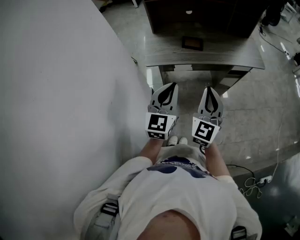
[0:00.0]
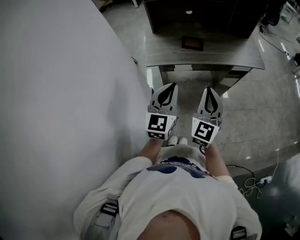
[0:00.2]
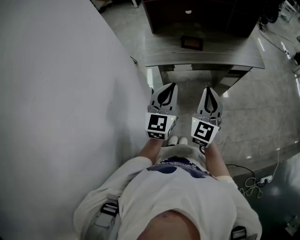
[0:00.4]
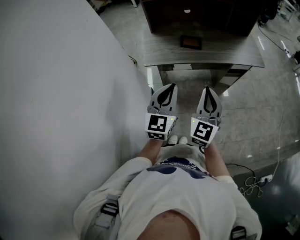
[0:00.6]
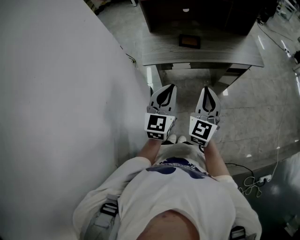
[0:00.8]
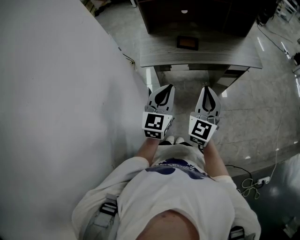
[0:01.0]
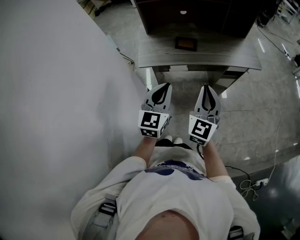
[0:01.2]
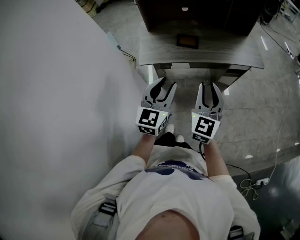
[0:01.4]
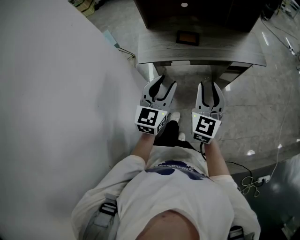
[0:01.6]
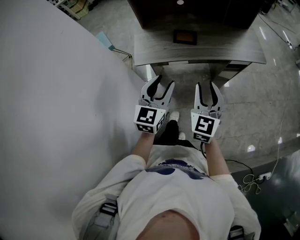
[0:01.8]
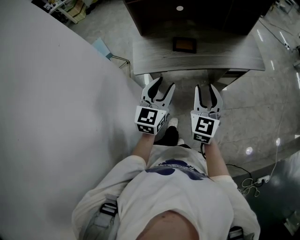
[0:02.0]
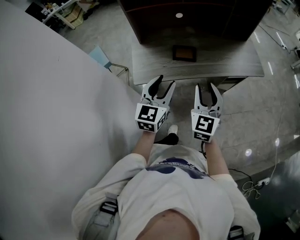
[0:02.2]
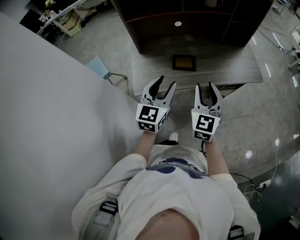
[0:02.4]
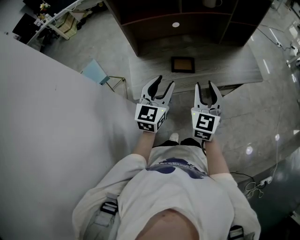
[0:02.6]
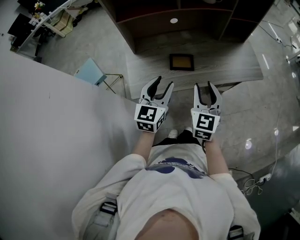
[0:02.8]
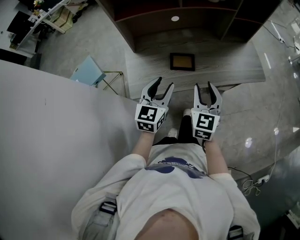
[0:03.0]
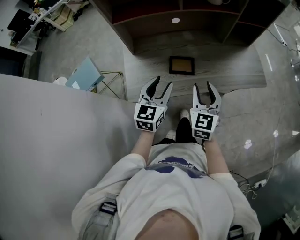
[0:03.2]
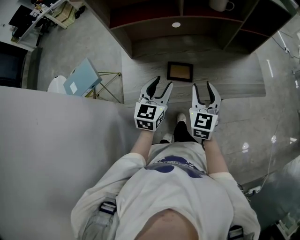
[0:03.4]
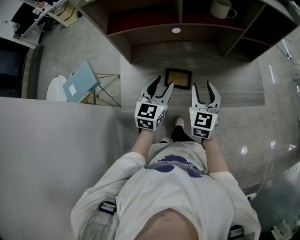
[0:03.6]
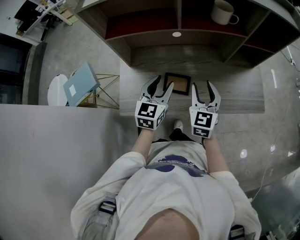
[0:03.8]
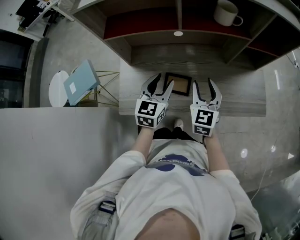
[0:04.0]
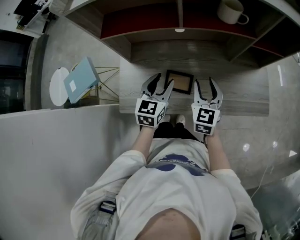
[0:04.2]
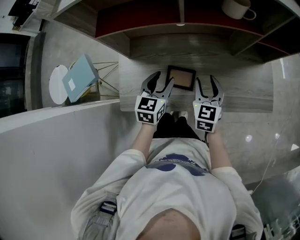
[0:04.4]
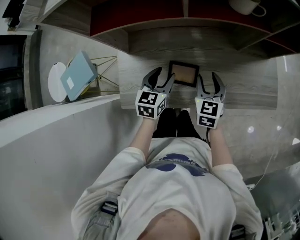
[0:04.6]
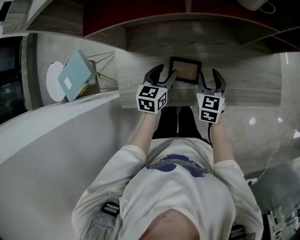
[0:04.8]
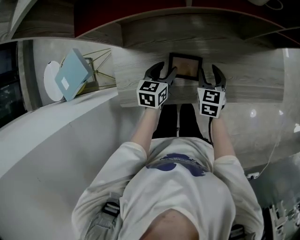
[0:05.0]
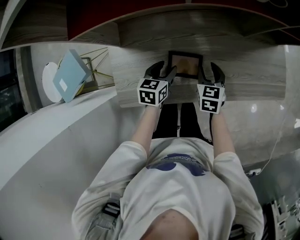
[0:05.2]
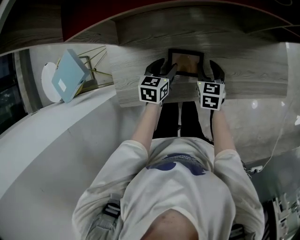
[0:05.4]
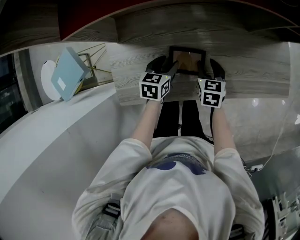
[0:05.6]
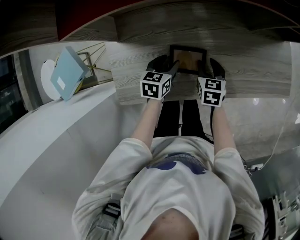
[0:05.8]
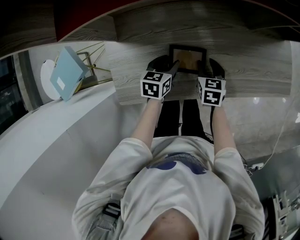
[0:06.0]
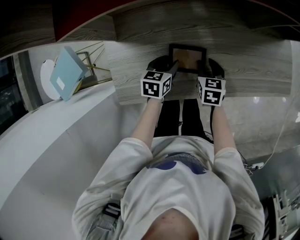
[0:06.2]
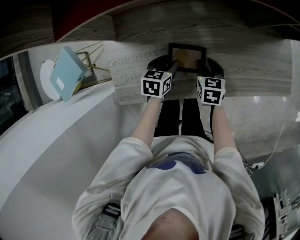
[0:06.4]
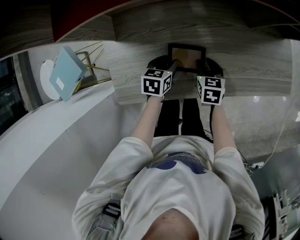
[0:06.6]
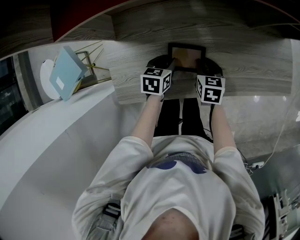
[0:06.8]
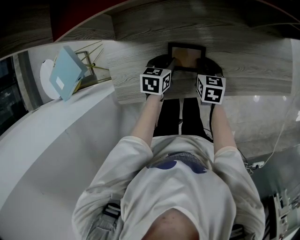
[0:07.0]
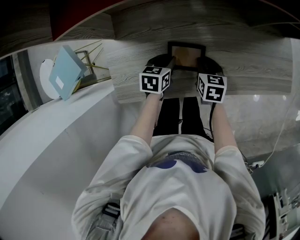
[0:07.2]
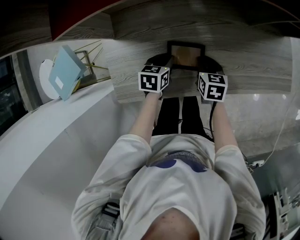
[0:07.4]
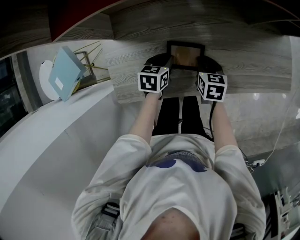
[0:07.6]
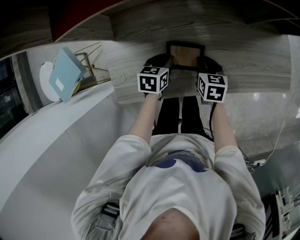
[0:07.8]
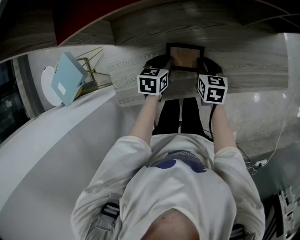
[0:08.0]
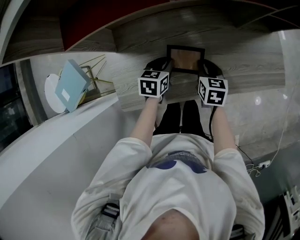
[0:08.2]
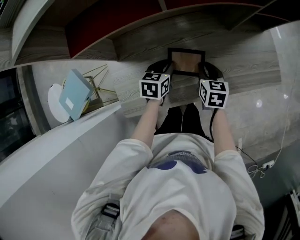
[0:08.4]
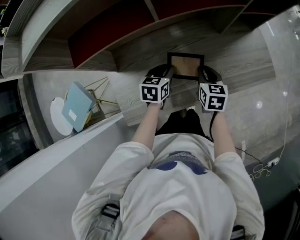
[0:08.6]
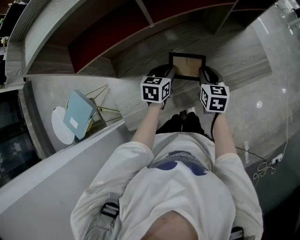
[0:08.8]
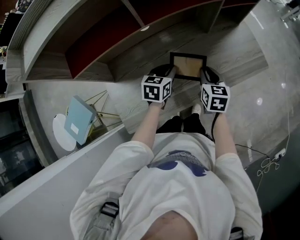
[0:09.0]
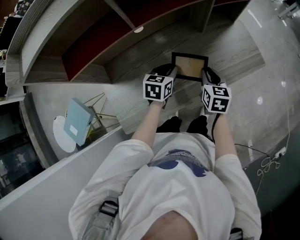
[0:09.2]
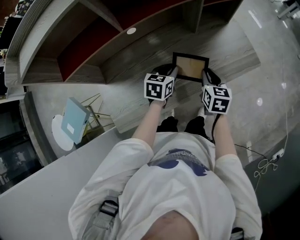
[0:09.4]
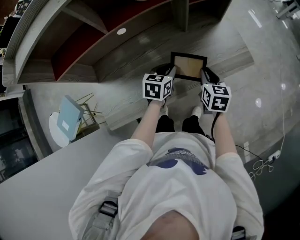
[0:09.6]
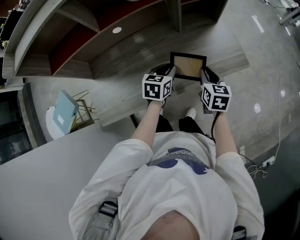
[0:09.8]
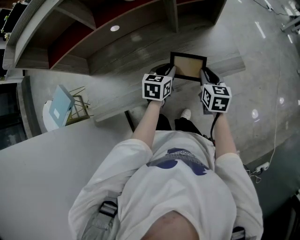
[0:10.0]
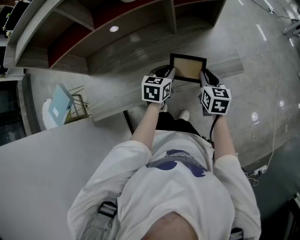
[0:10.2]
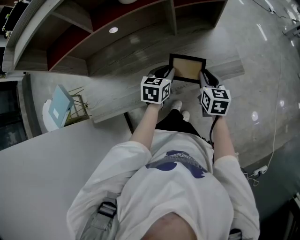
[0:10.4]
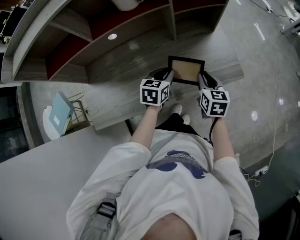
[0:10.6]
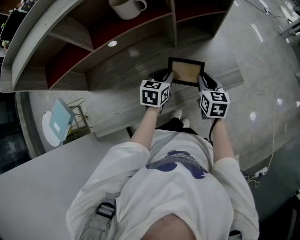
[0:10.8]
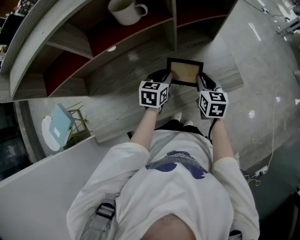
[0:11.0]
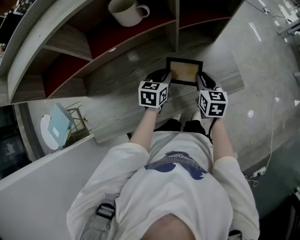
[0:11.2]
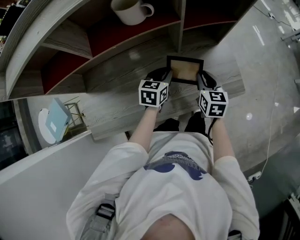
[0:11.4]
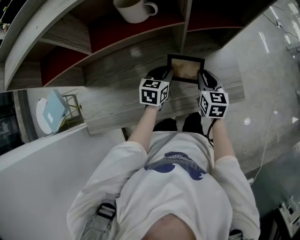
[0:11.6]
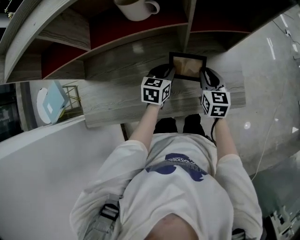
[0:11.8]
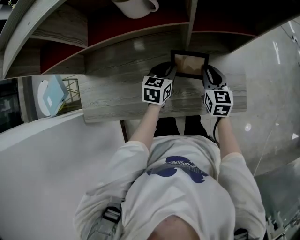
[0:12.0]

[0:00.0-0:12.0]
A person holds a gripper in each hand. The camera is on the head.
0:00.0 to 0:01.6: The left gripper moves about 5 cm, and opens. Meanwhile the right gripper is displaced forward by about 5 cm, and opens up.
0:01.6 to 0:03.0: Both grippers travel together forward, roughly 25 cm.
0:03.0 to 0:04.4: The two grippers go some 25 cm forward and downward.
0:04.4 to 0:06.0: Both grippers move downward, approximately 20 cm. The right gripper changes its angle by approximately 30 degrees; the left gripper rotates about 30 degrees.
0:06.0 to 0:07.6: The left gripper closes up. The right gripper closes.
0:07.6 to 0:09.0: Both grippers travel together upward and to the right, some 15 cm. The right gripper rotates about 20 degrees. Meanwhile the left gripper changes its angle by roughly 20 degrees.
0:09.0 to 0:10.4: The grippers both shift to the right by roughly 20 cm.
0:10.4 to 0:12.0: The grippers both shift forward by approximately 15 cm.

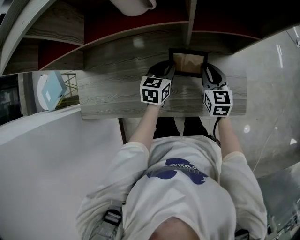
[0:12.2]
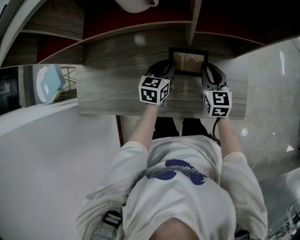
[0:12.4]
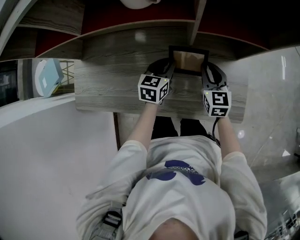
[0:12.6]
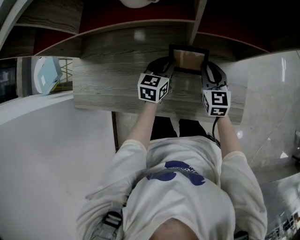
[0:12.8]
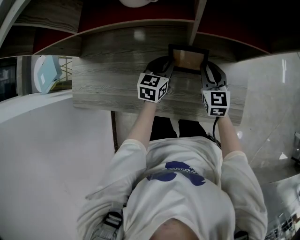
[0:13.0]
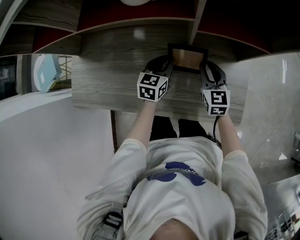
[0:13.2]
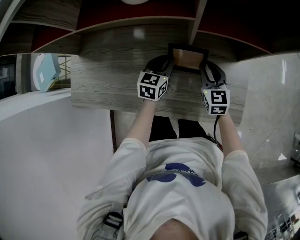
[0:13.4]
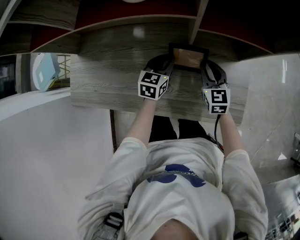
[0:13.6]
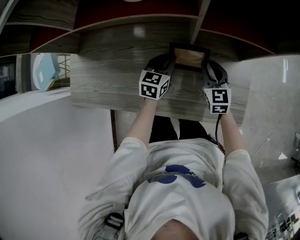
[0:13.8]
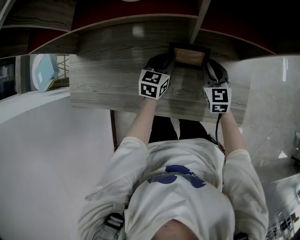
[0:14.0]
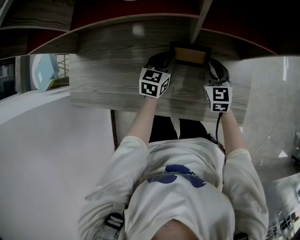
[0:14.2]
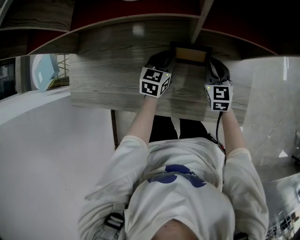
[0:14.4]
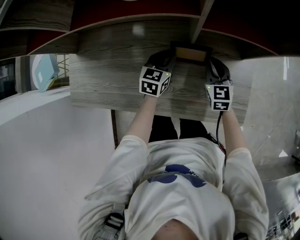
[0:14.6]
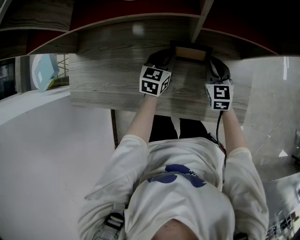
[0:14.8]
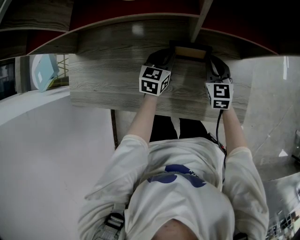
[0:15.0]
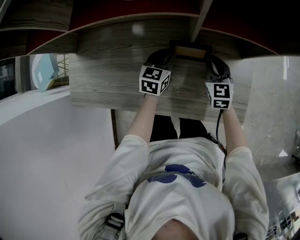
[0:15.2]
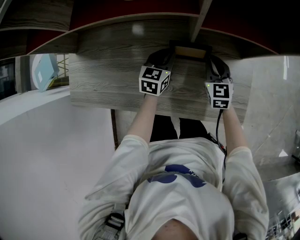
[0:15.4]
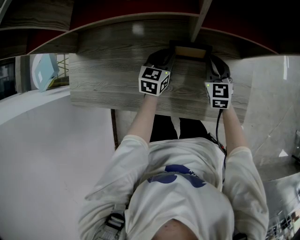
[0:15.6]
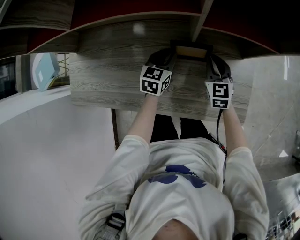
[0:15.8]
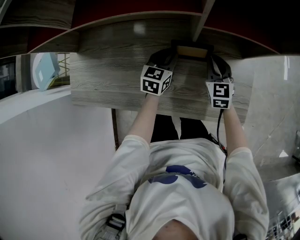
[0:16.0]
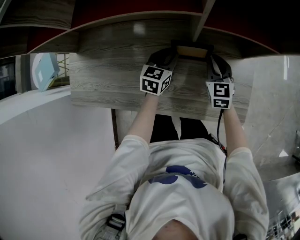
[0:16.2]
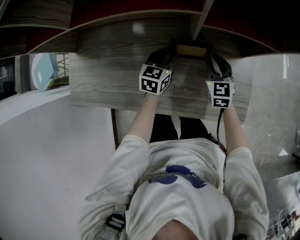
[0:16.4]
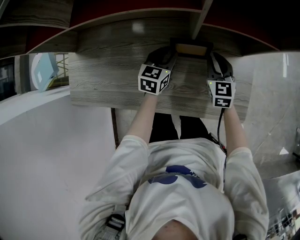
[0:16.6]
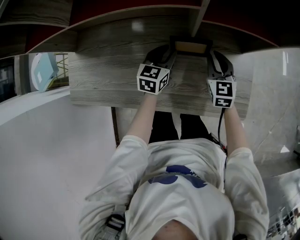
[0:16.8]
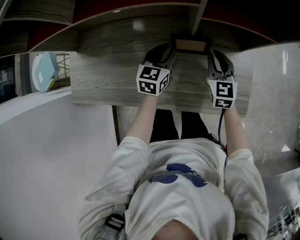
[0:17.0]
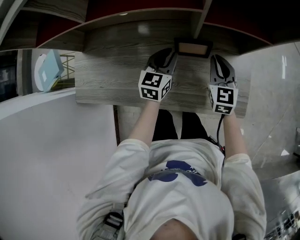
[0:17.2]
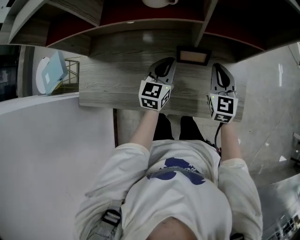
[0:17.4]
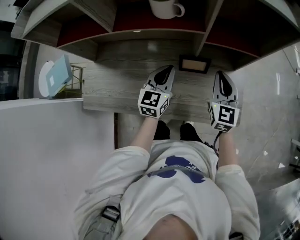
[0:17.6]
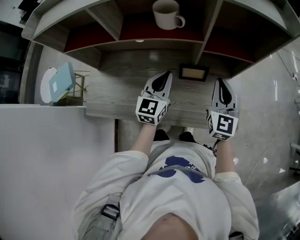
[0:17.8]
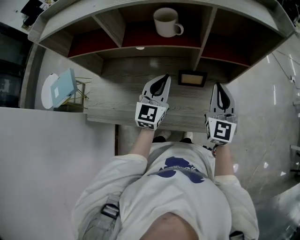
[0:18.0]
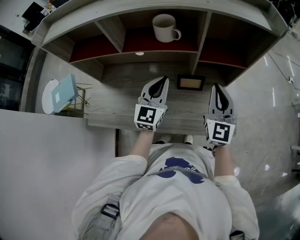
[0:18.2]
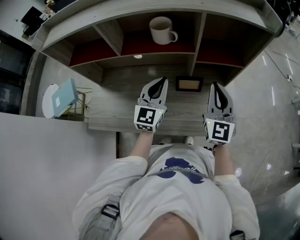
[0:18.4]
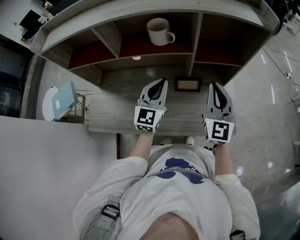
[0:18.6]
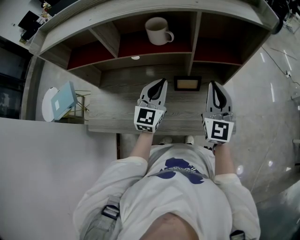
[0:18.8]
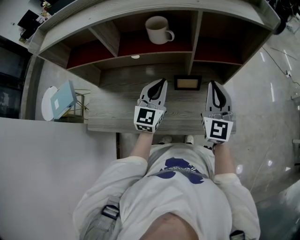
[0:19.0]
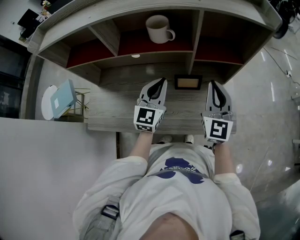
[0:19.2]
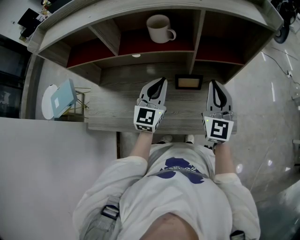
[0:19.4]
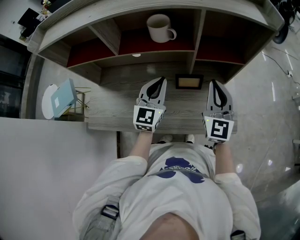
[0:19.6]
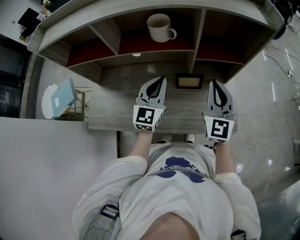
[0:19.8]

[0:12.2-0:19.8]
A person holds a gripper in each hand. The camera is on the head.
0:12.2 to 0:13.8: The right gripper shifts some 5 cm downward, while the left gripper moves roughly 5 cm.
0:13.8 to 0:16.8: The grippers stay close to where they were, moving slightly.
0:16.8 to 0:18.2: Both grippers move upward, roughly 25 cm. The right gripper changes its angle by roughly 30 degrees; the left gripper swivels some 30 degrees, and closes its fingers.
0:18.2 to 0:19.8: The grippers move only a little.

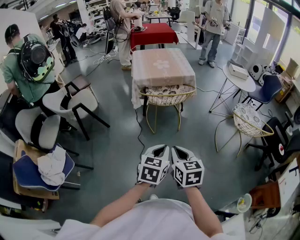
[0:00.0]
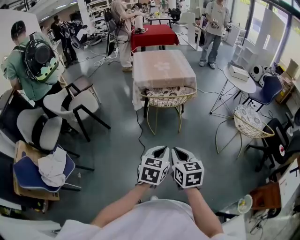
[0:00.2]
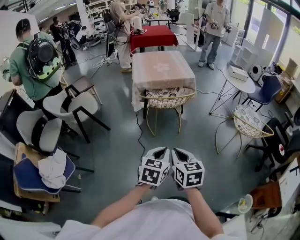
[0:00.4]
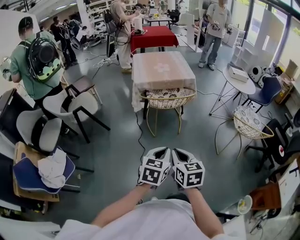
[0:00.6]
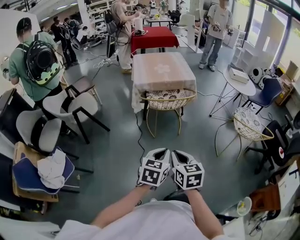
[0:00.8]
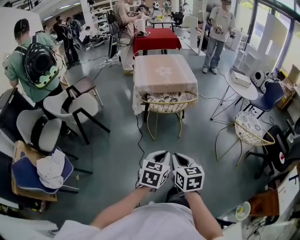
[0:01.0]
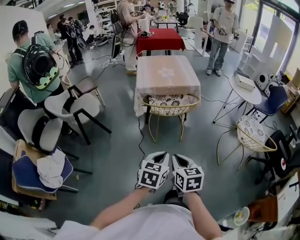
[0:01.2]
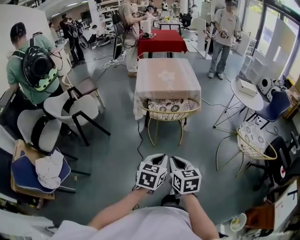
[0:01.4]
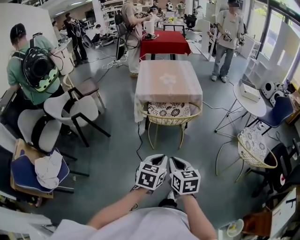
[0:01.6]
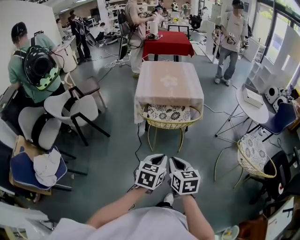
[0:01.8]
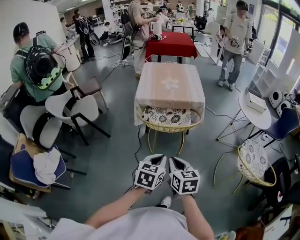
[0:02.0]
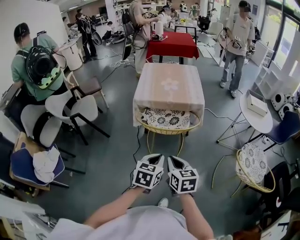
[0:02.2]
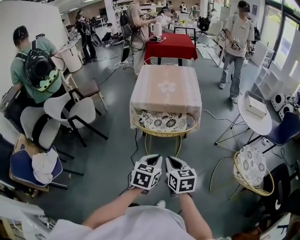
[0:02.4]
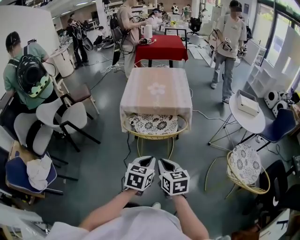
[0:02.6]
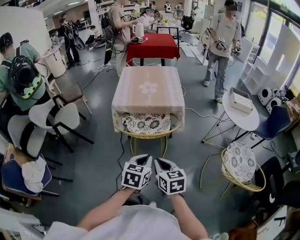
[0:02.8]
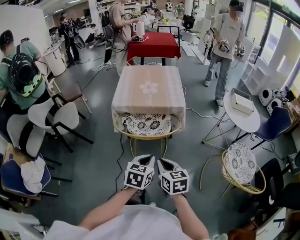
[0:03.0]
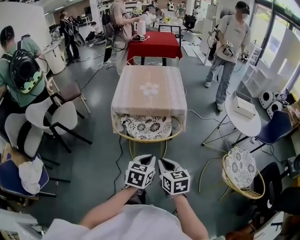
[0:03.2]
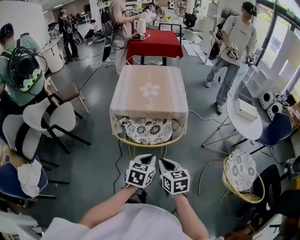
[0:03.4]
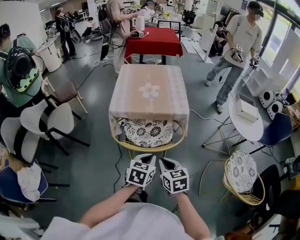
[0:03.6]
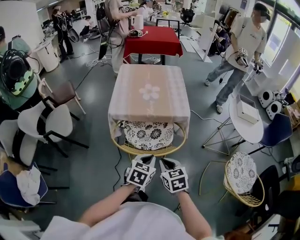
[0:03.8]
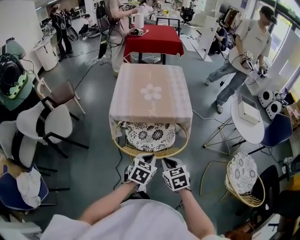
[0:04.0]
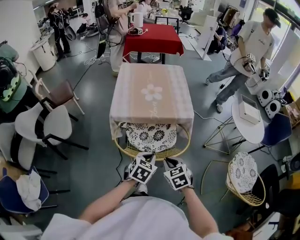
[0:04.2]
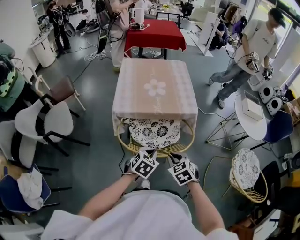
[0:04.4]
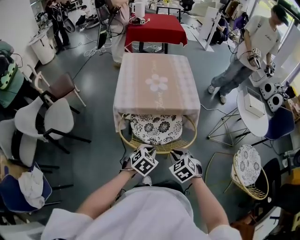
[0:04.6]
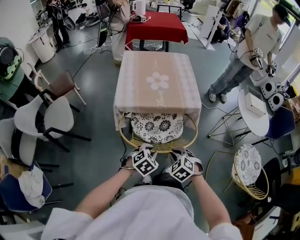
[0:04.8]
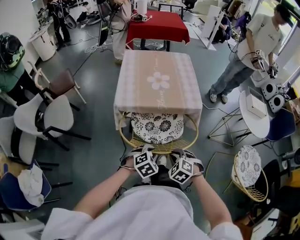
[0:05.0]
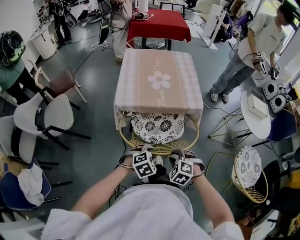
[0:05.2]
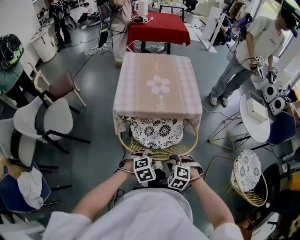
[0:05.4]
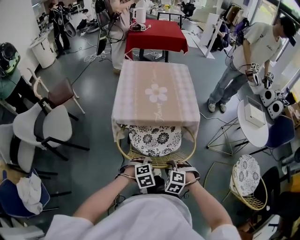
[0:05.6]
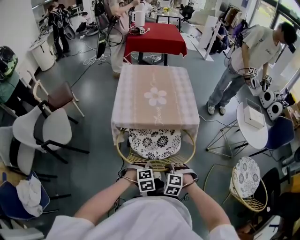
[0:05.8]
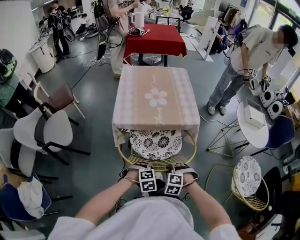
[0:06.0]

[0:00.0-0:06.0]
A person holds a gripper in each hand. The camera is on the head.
0:00.0 to 0:01.6: Both grippers travel together forward, roughly 15 cm.
0:01.6 to 0:03.0: Both grippers travel together forward and to the right, some 20 cm.
0:03.0 to 0:04.4: The right gripper is displaced forward and downward by approximately 20 cm, and rotates approximately 30 degrees. Meanwhile the left gripper moves forward, downward and to the left, roughly 25 cm, and turns by approximately 20 degrees.
0:04.4 to 0:06.0: Both grippers move downward, about 10 cm. The left gripper rolls clockwise, seen from behind, by some 40 degrees, while the right gripper rotates around the line of its fingers by some 50 degrees, counterclockwise from behind.
